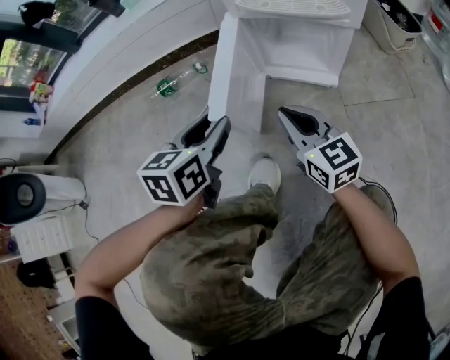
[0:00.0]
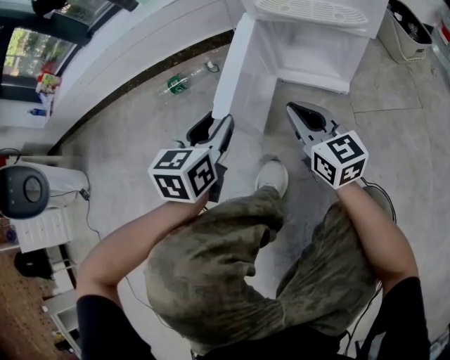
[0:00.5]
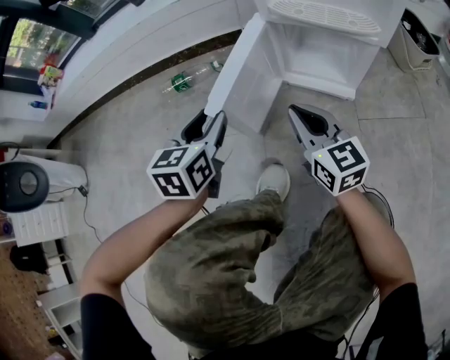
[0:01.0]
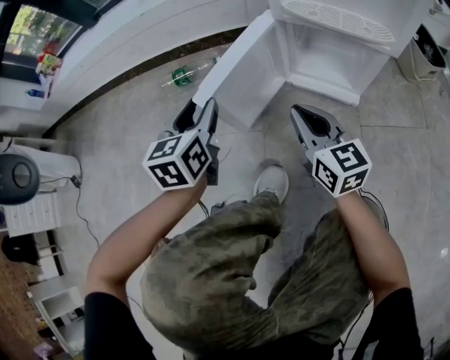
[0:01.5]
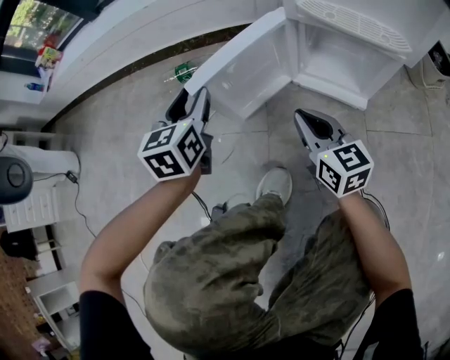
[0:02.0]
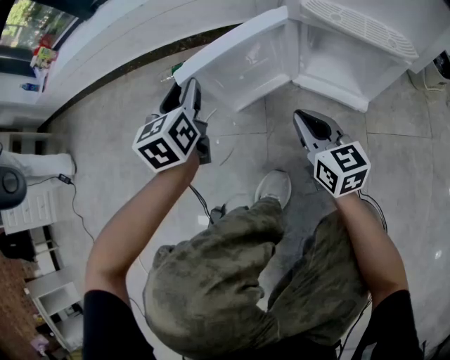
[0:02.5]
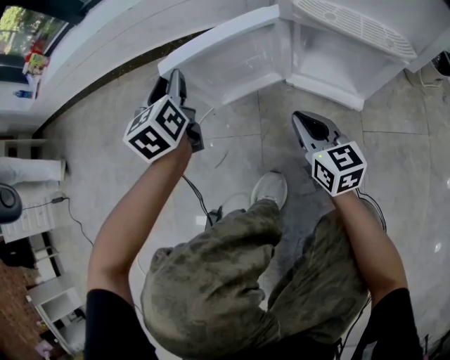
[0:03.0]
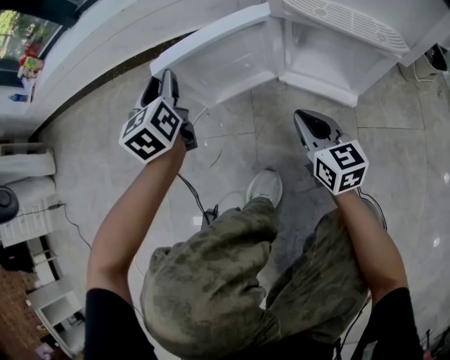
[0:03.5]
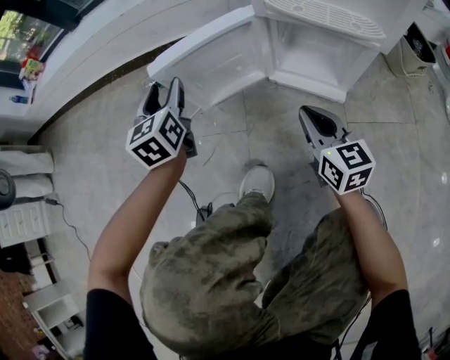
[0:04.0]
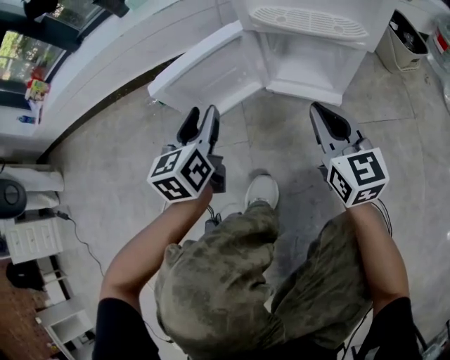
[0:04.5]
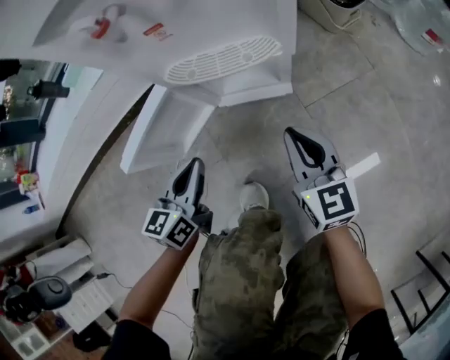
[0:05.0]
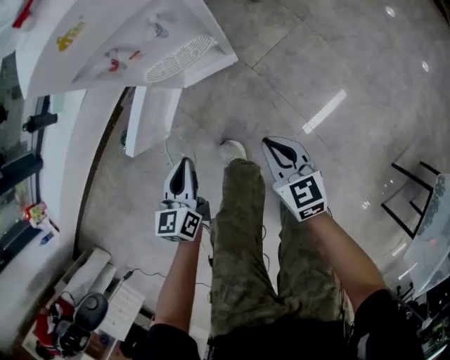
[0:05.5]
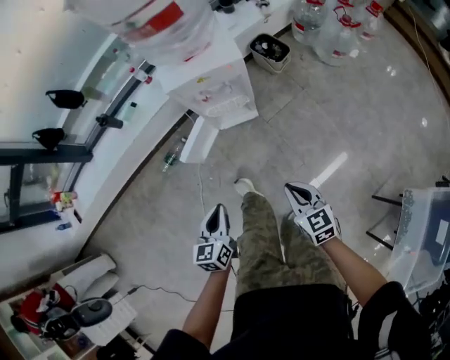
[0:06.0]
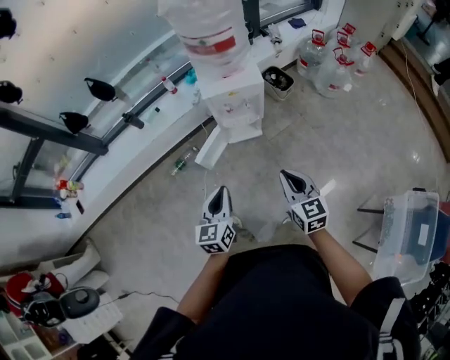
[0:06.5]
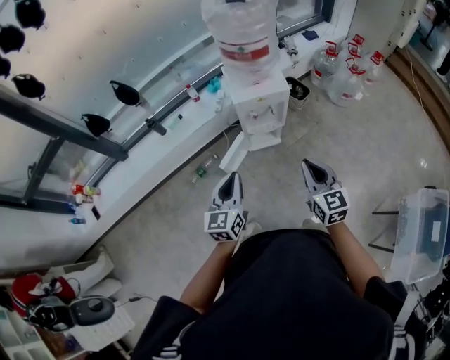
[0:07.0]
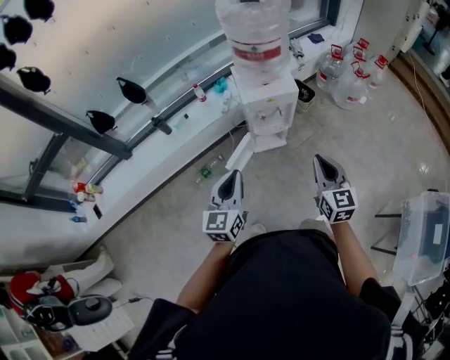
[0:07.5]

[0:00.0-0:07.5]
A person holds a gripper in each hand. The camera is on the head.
0:00.0 to 0:02.0: The left gripper travels to the left and forward by roughly 15 cm, and changes its angle by roughly 20 degrees, while the right gripper moves forward, some 5 cm.
0:02.0 to 0:04.0: The right gripper shifts about 5 cm to the right.
0:04.0 to 0:05.5: The left gripper moves roughly 30 cm, swivels some 50 degrees, and closes its fingers, while the right gripper changes place by approximately 30 cm, and swivels about 30 degrees.
0:05.5 to 0:07.5: The grippers both shift upward by approximately 60 cm. The right gripper turns by about 30 degrees. Meanwhile the left gripper changes its angle by about 20 degrees.

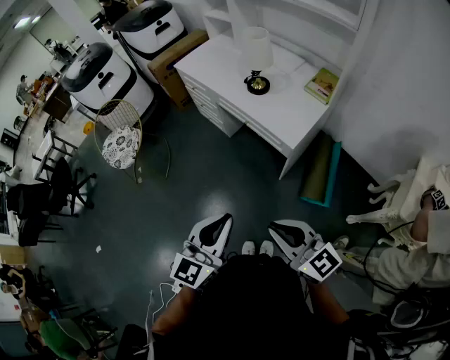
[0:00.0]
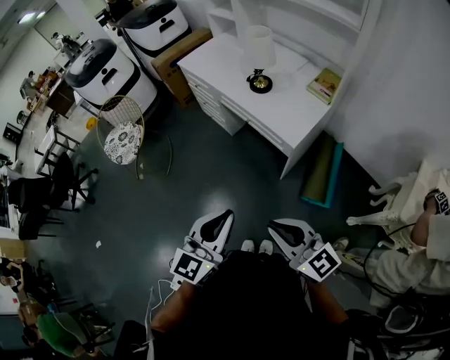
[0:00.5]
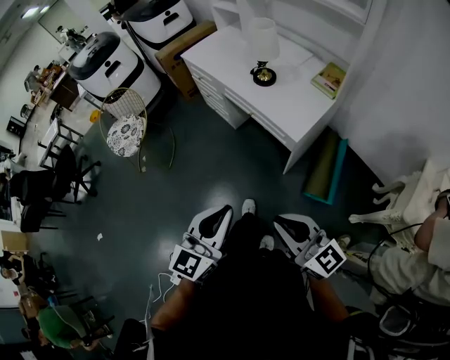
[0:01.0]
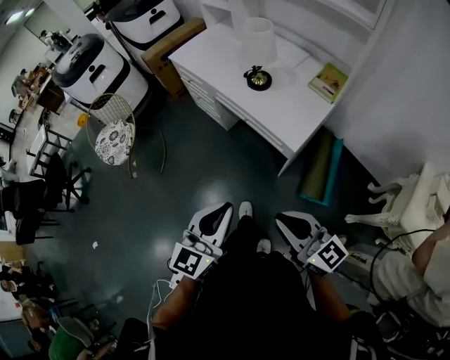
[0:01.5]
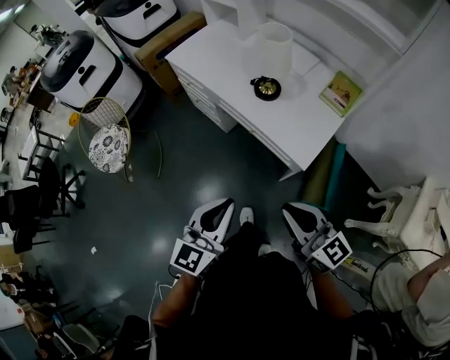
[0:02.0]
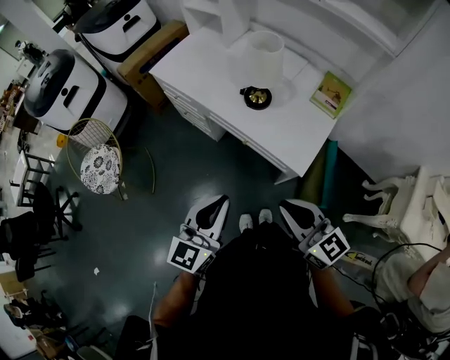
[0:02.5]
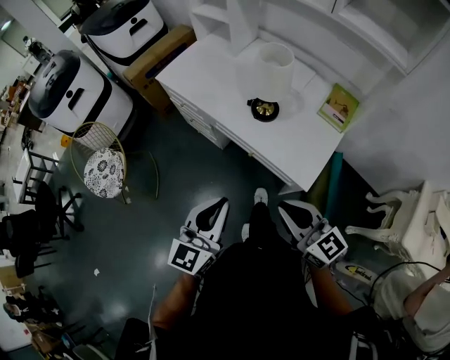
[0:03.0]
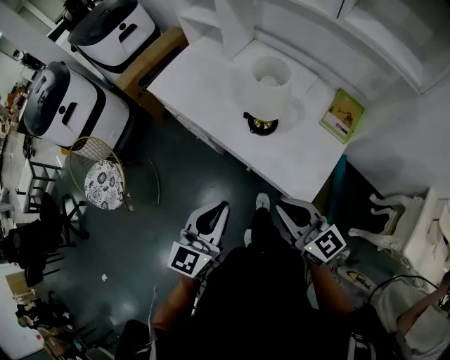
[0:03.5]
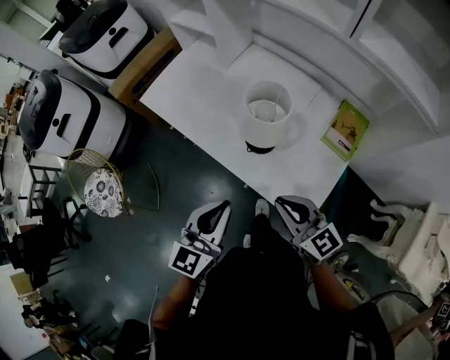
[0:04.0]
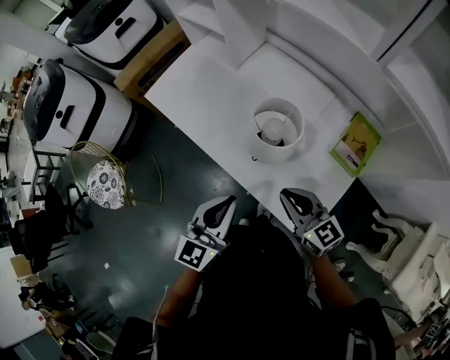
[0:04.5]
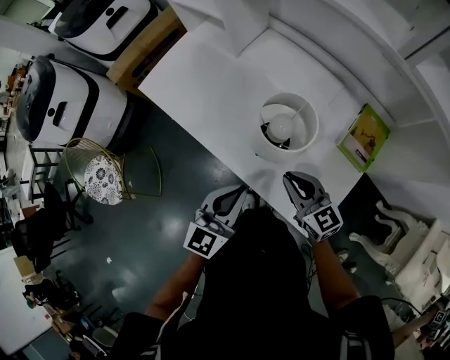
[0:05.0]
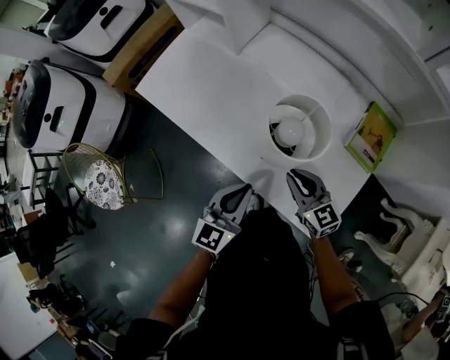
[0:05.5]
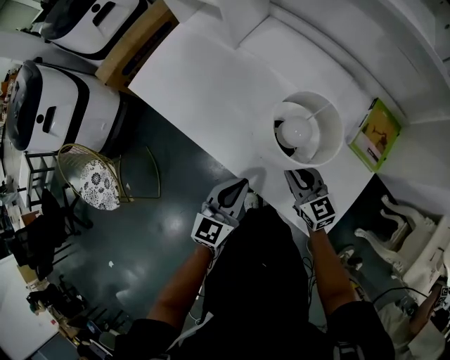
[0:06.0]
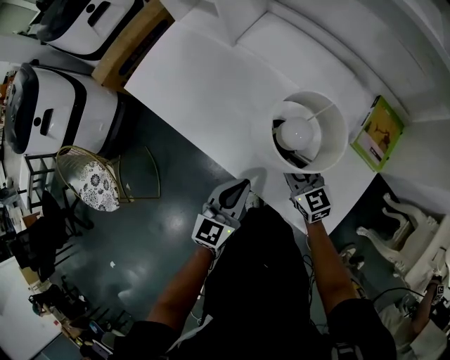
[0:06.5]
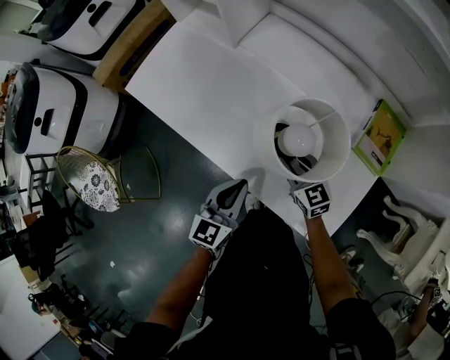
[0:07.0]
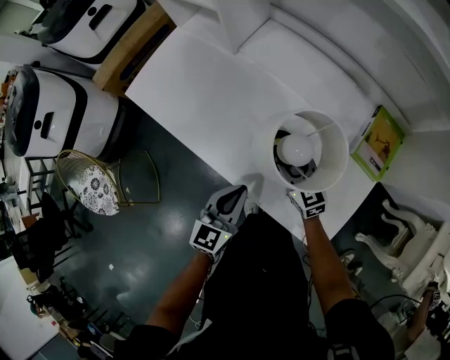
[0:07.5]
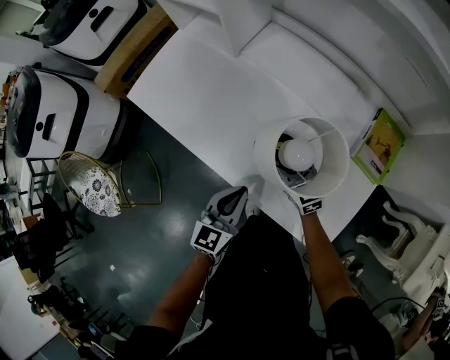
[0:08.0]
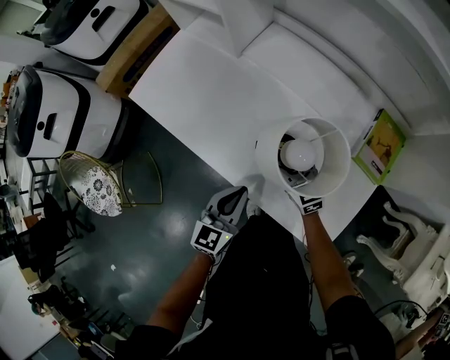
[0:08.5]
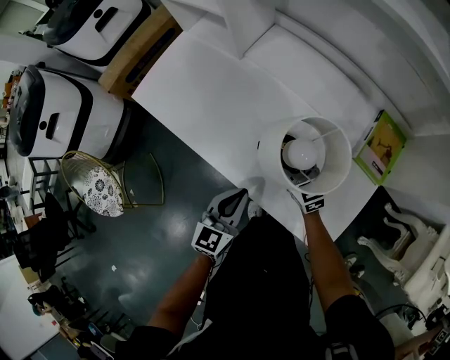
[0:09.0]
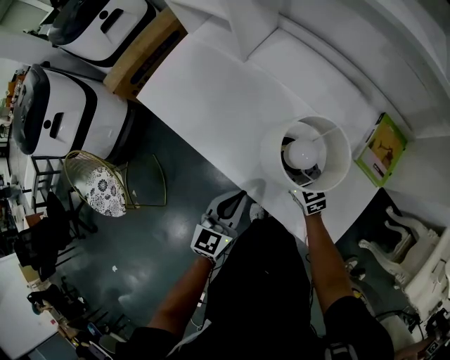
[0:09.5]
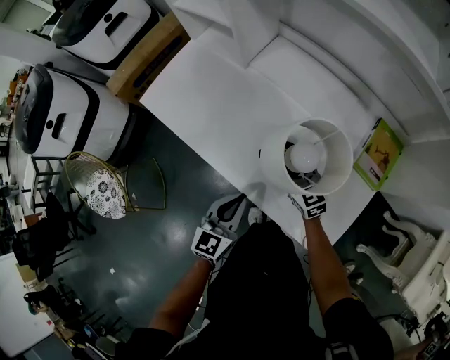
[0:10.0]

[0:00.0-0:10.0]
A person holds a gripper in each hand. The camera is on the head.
0:00.0 to 0:02.0: Both grippers move forward, approximately 20 cm.
0:02.0 to 0:04.0: The two grippers go roughly 30 cm forward.
0:04.0 to 0:06.0: Both grippers move downward and forward, some 25 cm.
0:06.0 to 0:08.0: The right gripper travels forward by about 10 cm.
0:08.0 to 0:10.0: There are only small adjustments of the grippers.

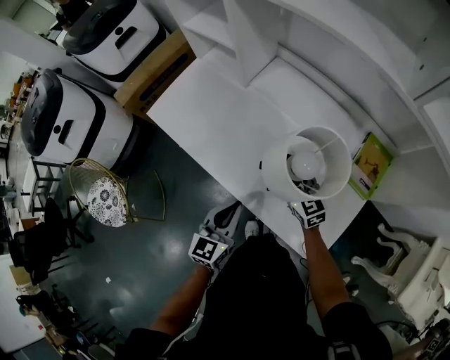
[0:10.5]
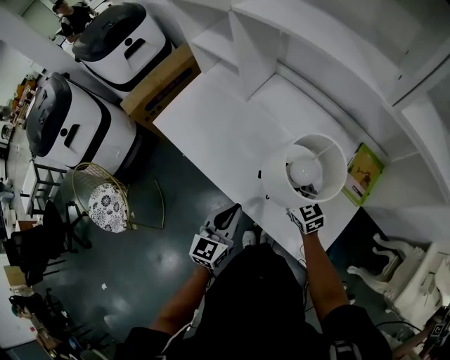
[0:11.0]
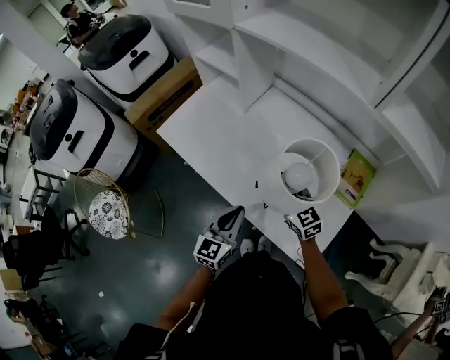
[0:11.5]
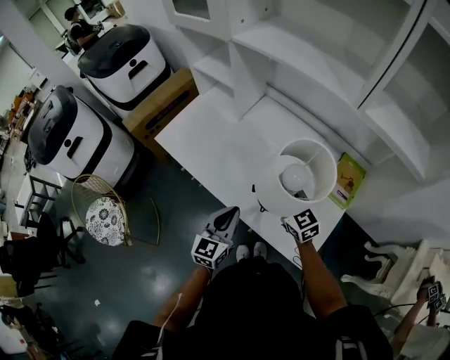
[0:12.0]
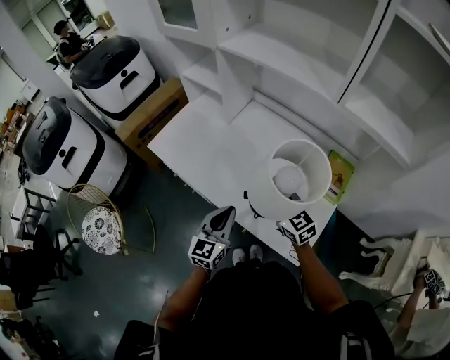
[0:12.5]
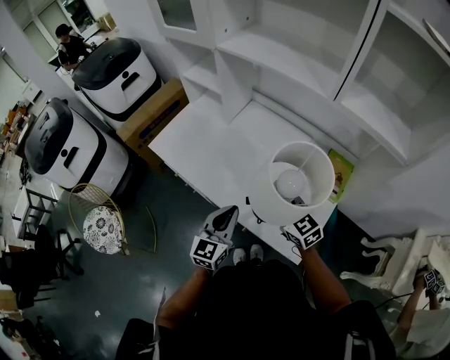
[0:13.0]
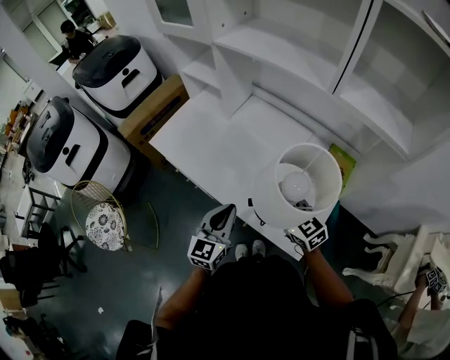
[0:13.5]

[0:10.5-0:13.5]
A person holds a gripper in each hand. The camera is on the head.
0:10.5 to 0:12.0: The right gripper goes roughly 10 cm upward and backward. The left gripper shifts roughly 5 cm upward.
0:12.0 to 0:13.5: The left gripper moves approximately 5 cm; the right gripper shifts about 10 cm backward and upward.

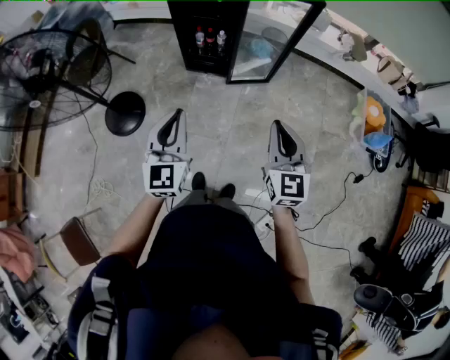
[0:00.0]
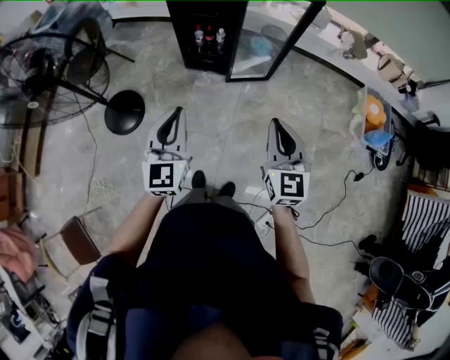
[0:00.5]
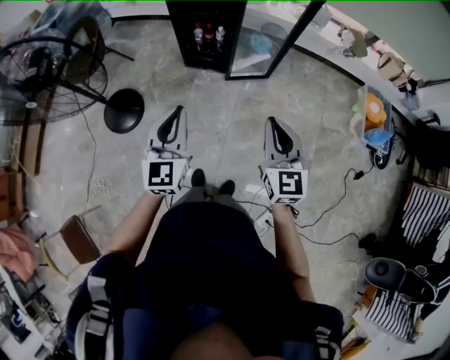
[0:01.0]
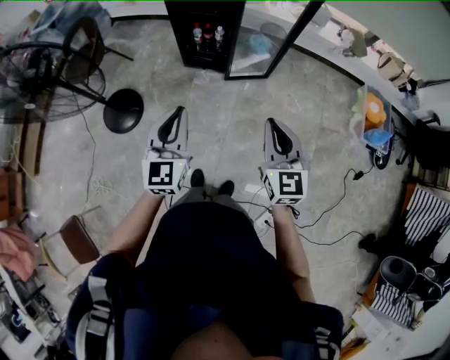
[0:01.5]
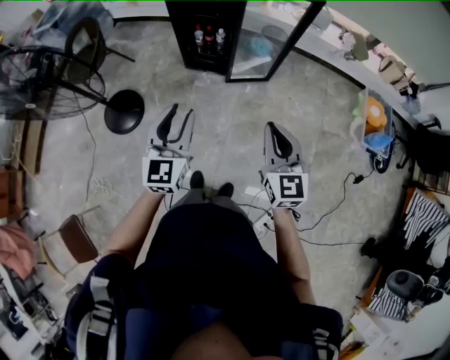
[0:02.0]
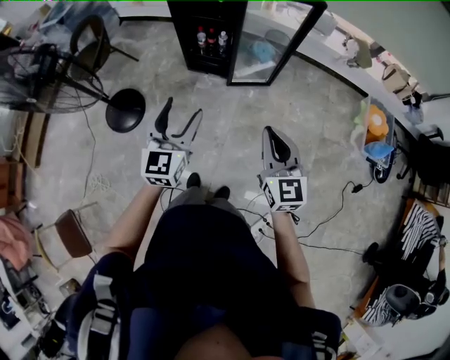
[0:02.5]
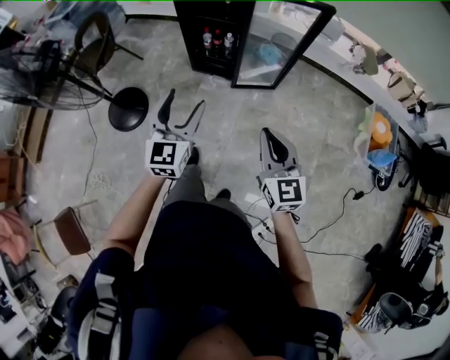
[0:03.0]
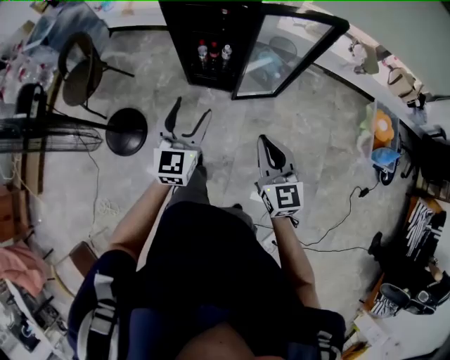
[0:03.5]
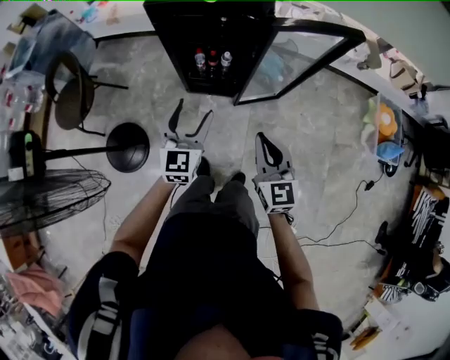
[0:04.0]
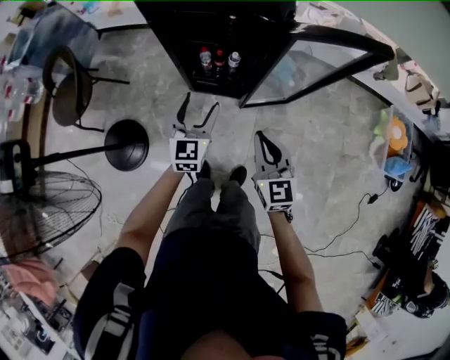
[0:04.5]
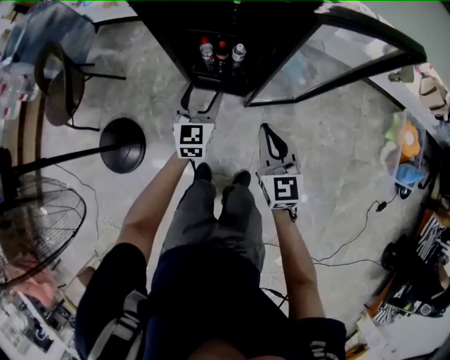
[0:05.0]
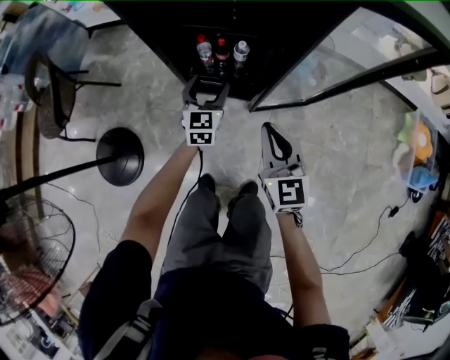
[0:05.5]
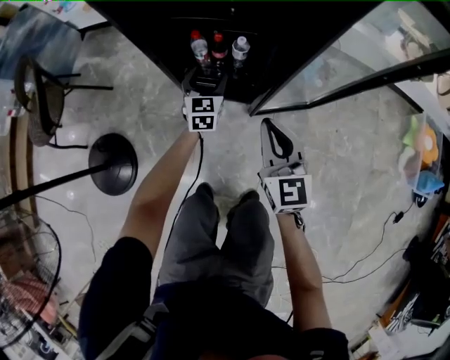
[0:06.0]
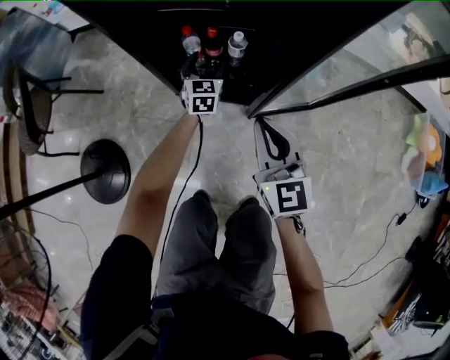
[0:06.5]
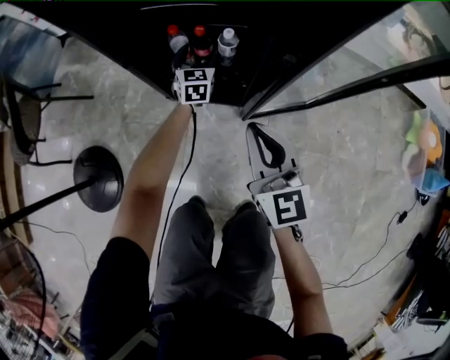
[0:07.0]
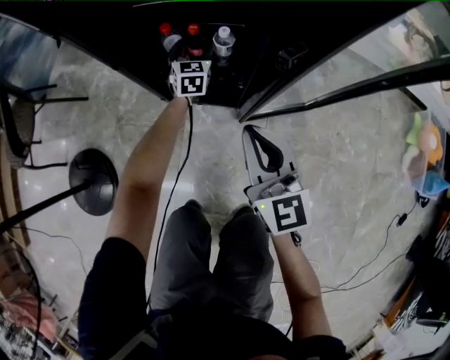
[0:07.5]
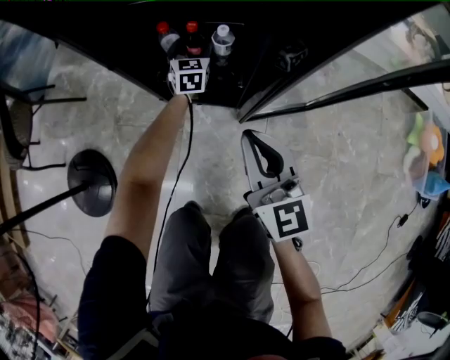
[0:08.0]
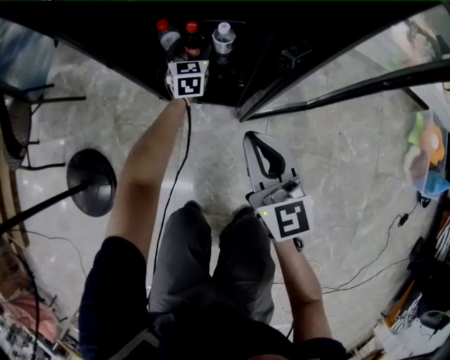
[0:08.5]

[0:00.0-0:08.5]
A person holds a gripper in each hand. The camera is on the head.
0:00.0 to 0:02.0: The left gripper opens.
0:02.0 to 0:04.0: The left gripper is displaced forward by about 35 cm, and opens its fingers. Meanwhile the right gripper travels forward and to the left by roughly 30 cm.
0:04.0 to 0:06.5: The grippers both shift downward and forward by about 50 cm.
0:06.5 to 0:08.5: The right gripper goes some 5 cm downward. Meanwhile the left gripper heads forward and downward, covering approximately 10 cm.
